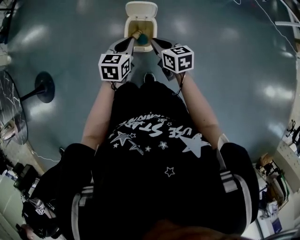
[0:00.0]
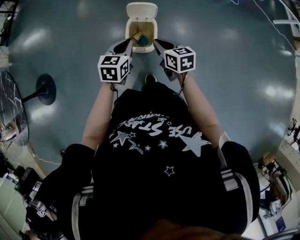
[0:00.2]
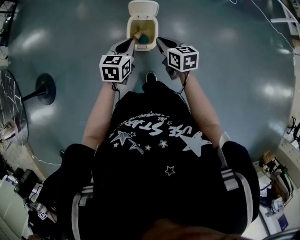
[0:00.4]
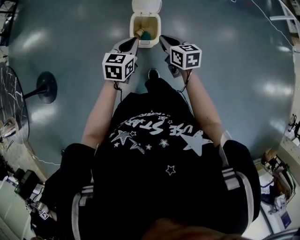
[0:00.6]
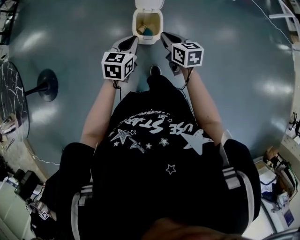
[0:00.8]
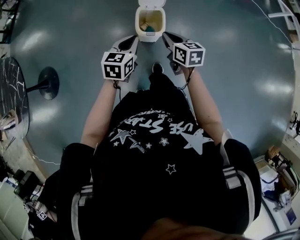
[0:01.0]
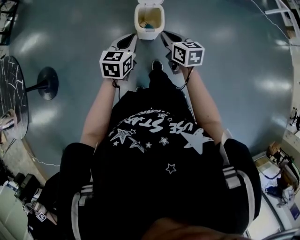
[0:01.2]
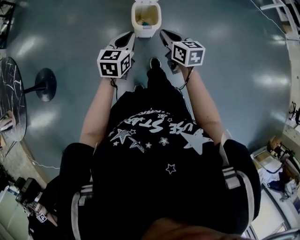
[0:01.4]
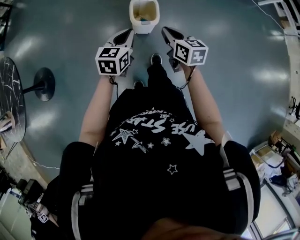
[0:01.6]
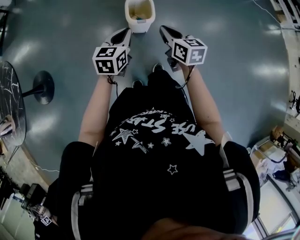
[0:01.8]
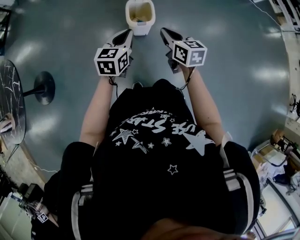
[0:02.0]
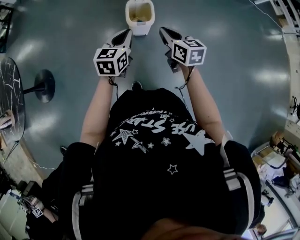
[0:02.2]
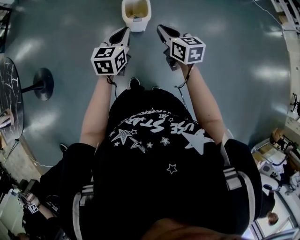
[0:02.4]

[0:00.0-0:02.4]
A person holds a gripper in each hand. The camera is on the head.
0.0 to 1.2 s: The two grippers go about 15 cm backward and to the left.
1.2 to 2.4 s: The right gripper travels backward and upward by about 10 cm, while the left gripper is displaced backward by about 10 cm.

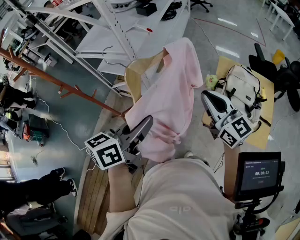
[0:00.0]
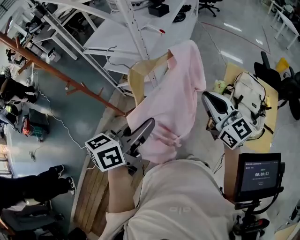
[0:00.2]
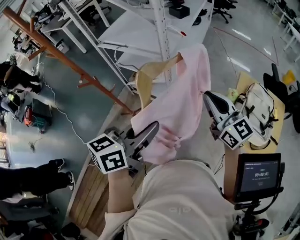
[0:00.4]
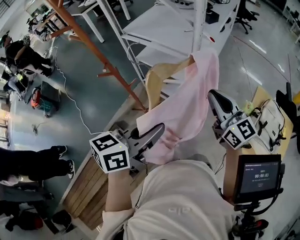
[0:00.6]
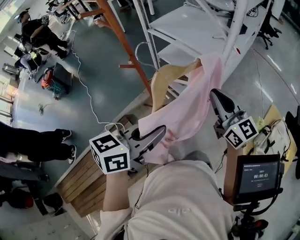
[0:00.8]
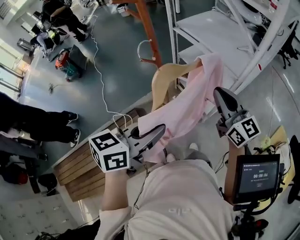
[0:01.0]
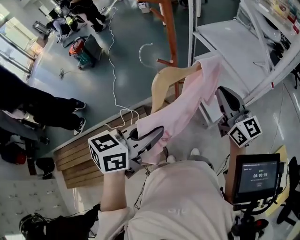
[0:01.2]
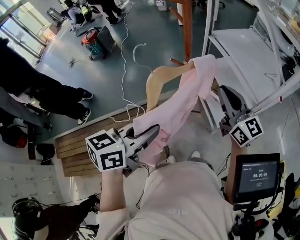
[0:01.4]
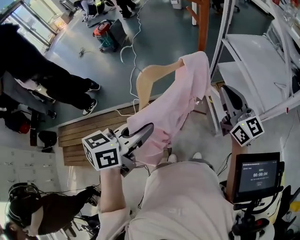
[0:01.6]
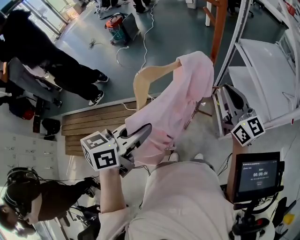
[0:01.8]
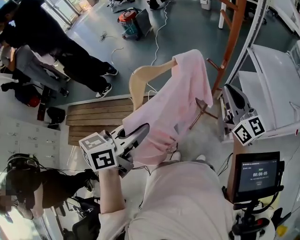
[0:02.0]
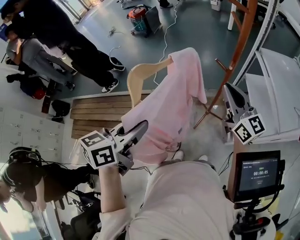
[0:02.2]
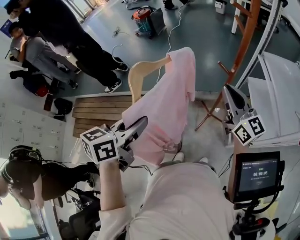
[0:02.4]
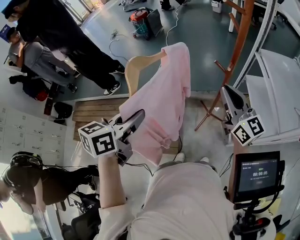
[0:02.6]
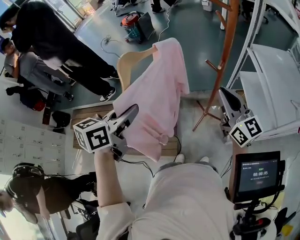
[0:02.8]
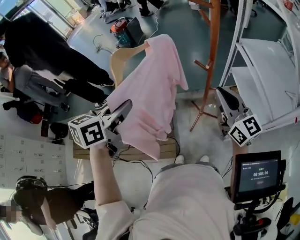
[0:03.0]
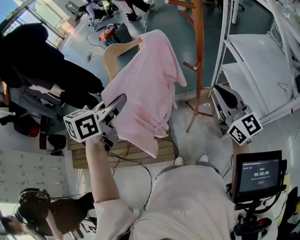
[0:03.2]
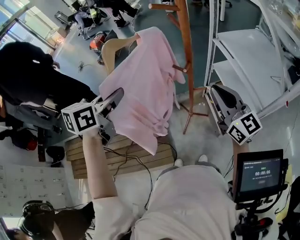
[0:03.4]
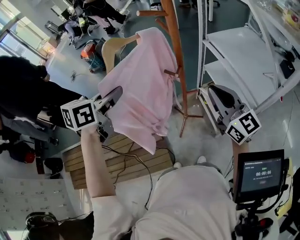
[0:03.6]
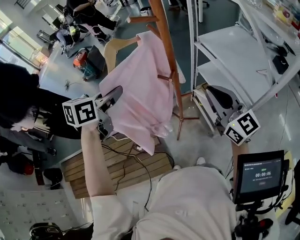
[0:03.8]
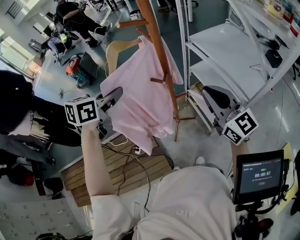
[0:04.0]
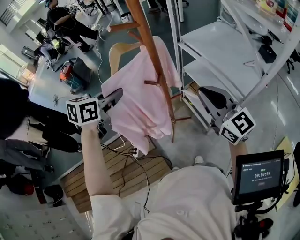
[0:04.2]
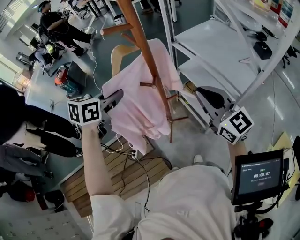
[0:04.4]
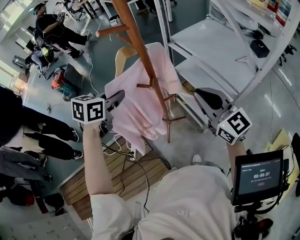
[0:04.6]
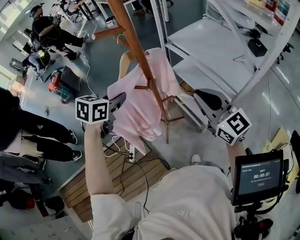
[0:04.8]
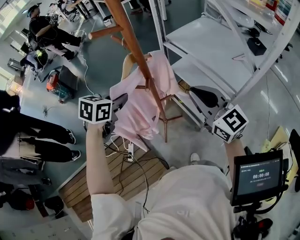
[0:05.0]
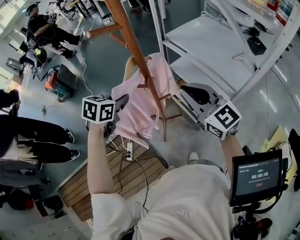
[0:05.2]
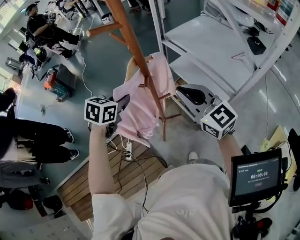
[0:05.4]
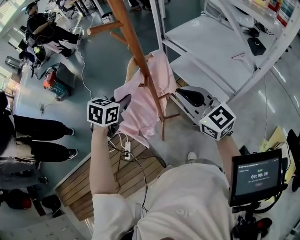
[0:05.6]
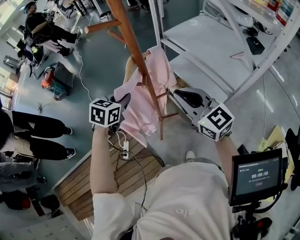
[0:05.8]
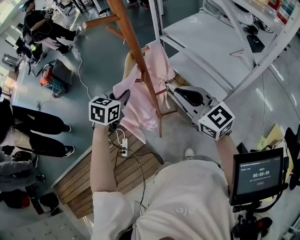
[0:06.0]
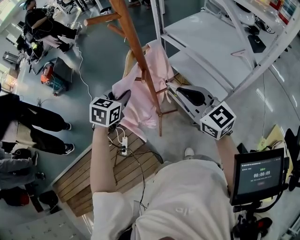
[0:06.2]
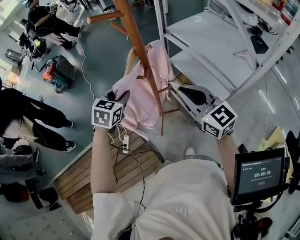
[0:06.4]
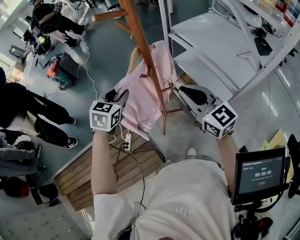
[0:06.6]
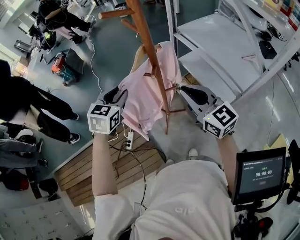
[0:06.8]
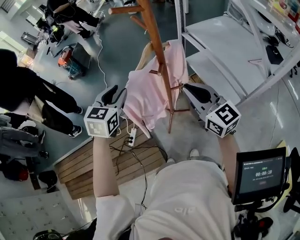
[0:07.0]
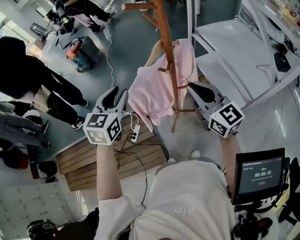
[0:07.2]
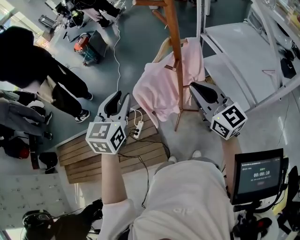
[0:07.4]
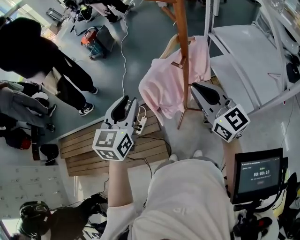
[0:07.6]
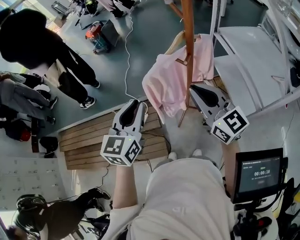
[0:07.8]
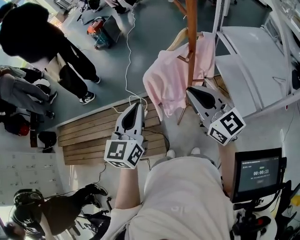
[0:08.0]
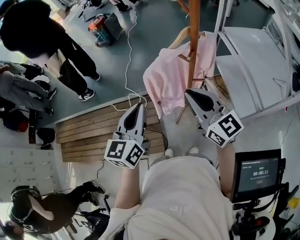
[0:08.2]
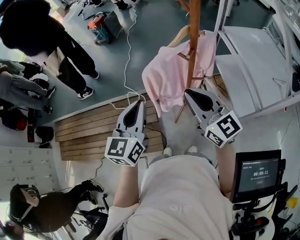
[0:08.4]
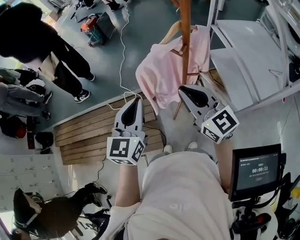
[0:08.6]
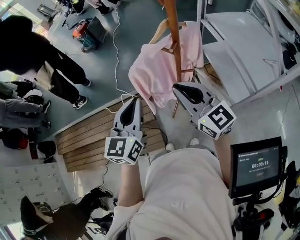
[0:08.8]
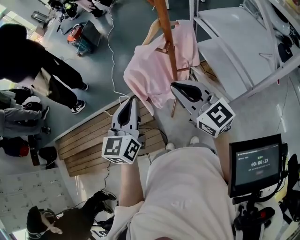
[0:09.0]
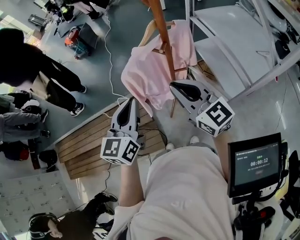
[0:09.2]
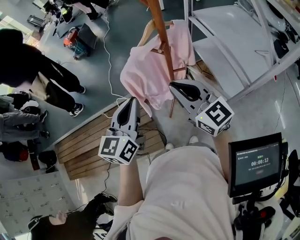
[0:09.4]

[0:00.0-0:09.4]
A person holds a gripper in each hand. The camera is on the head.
0.0 to 1.6 s: The left gripper shifts by about 40 cm, and turns by roughly 50 degrees. The right gripper shifts by about 50 cm, and rotates roughly 50 degrees.
1.6 to 3.2 s: The right gripper travels to the left by approximately 5 cm. Meanwhile the left gripper goes roughly 15 cm forward and to the left.
3.2 to 4.8 s: The left gripper moves forward, downward and to the right, about 25 cm, and rotates some 40 degrees, while the right gripper moves to the right, roughly 5 cm, and turns by about 20 degrees.
4.8 to 6.2 s: The right gripper changes place by approximately 5 cm. The left gripper is displaced downward by roughly 5 cm.
6.2 to 7.8 s: The left gripper shifts by approximately 25 cm, and swivels about 40 degrees; the right gripper moves about 10 cm, and changes its angle by some 20 degrees.
7.8 to 9.4 s: The left gripper shifts by about 5 cm.

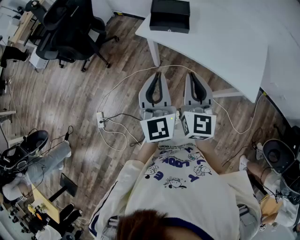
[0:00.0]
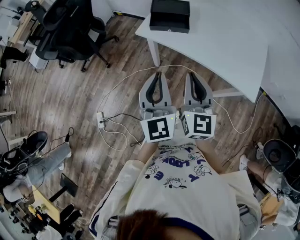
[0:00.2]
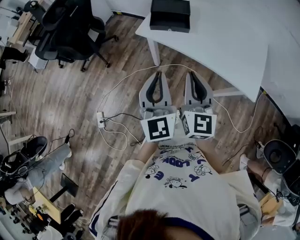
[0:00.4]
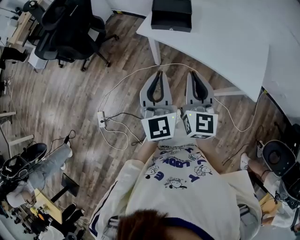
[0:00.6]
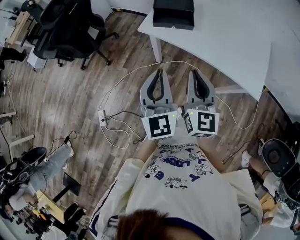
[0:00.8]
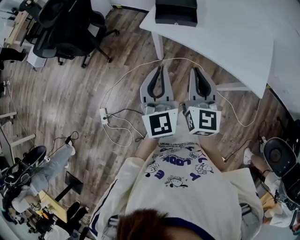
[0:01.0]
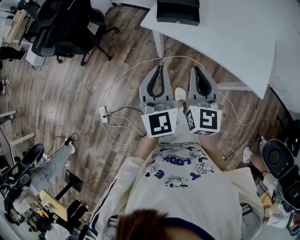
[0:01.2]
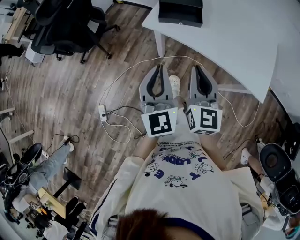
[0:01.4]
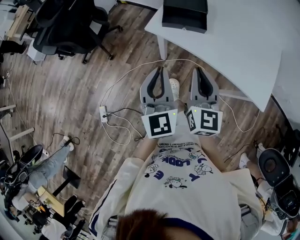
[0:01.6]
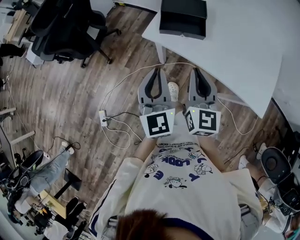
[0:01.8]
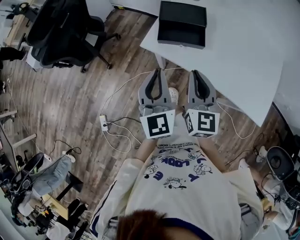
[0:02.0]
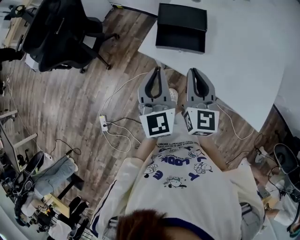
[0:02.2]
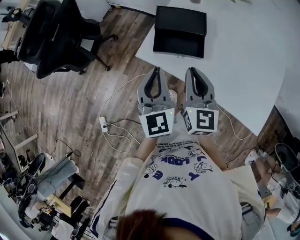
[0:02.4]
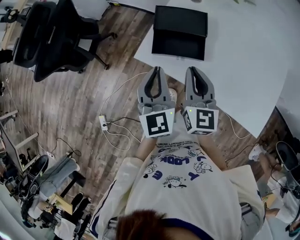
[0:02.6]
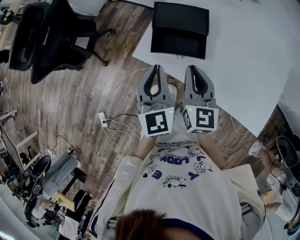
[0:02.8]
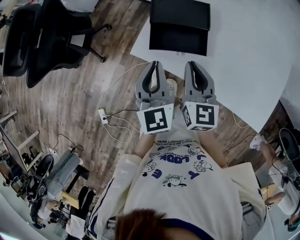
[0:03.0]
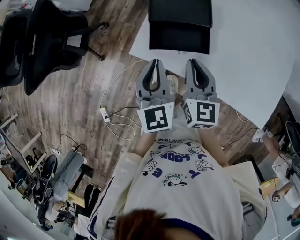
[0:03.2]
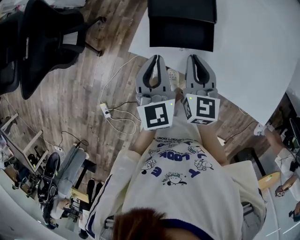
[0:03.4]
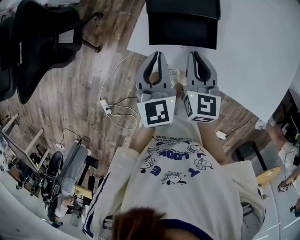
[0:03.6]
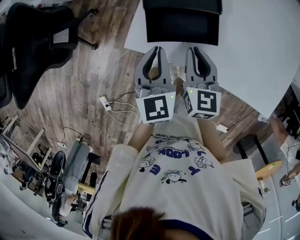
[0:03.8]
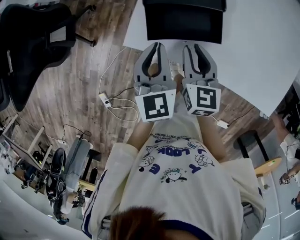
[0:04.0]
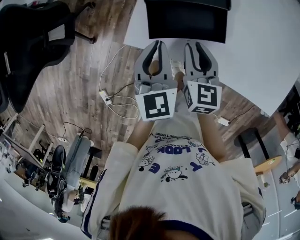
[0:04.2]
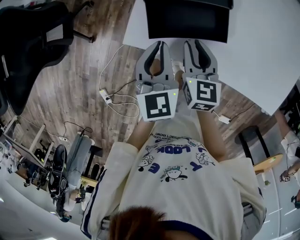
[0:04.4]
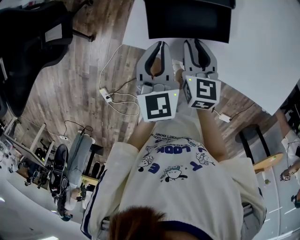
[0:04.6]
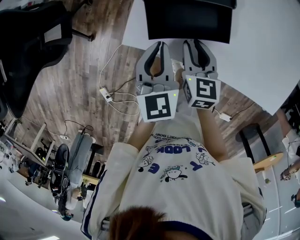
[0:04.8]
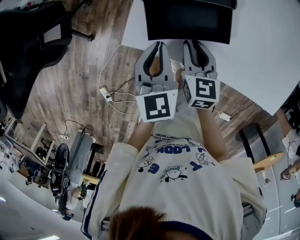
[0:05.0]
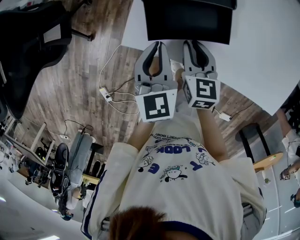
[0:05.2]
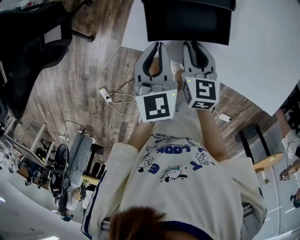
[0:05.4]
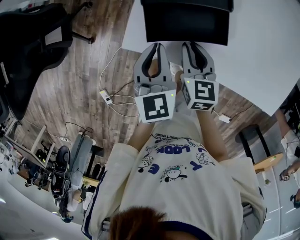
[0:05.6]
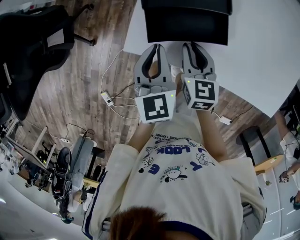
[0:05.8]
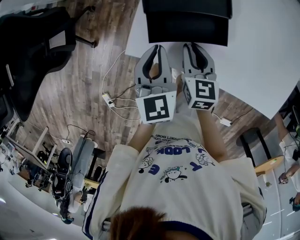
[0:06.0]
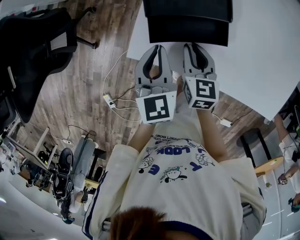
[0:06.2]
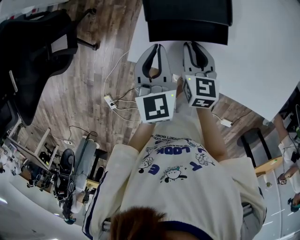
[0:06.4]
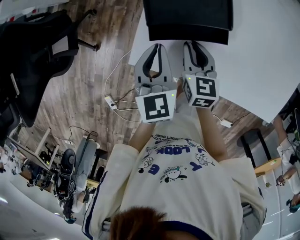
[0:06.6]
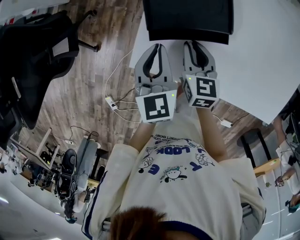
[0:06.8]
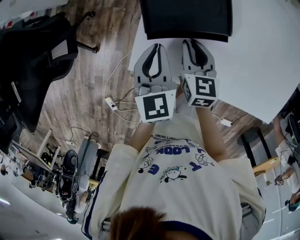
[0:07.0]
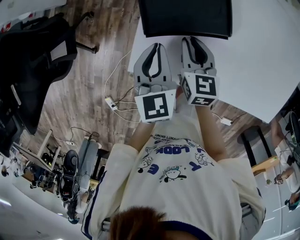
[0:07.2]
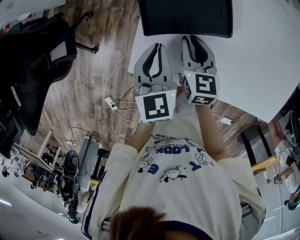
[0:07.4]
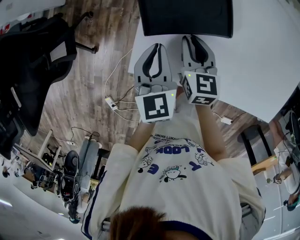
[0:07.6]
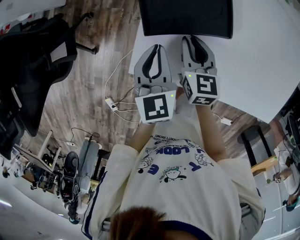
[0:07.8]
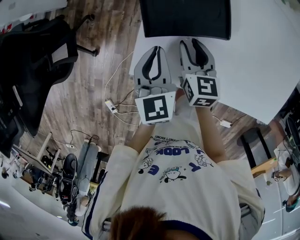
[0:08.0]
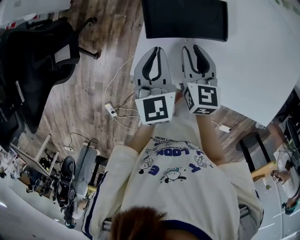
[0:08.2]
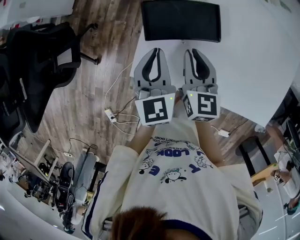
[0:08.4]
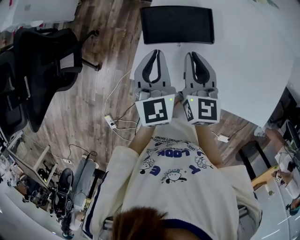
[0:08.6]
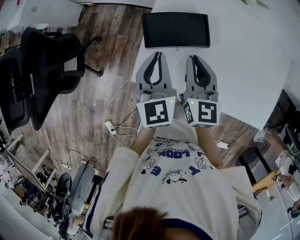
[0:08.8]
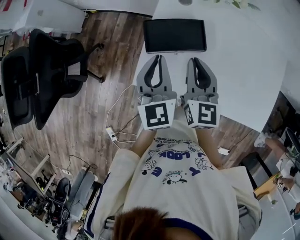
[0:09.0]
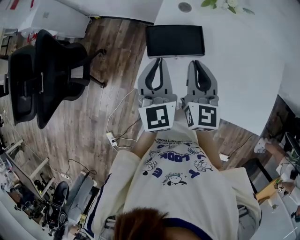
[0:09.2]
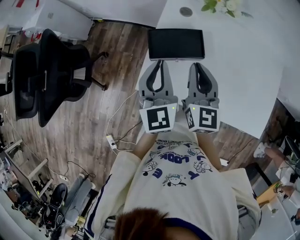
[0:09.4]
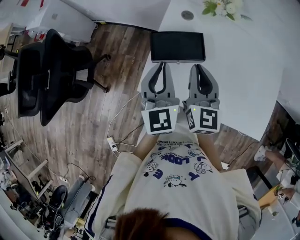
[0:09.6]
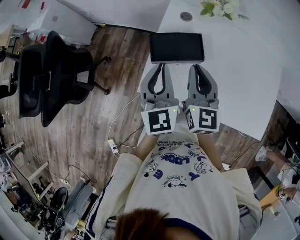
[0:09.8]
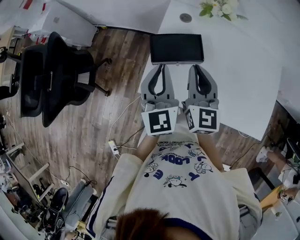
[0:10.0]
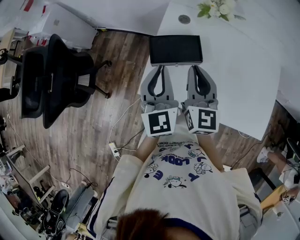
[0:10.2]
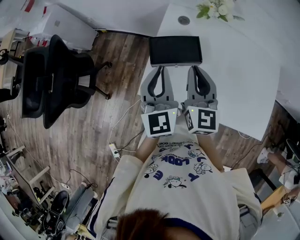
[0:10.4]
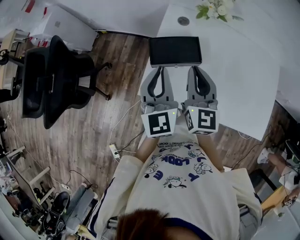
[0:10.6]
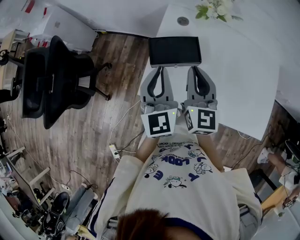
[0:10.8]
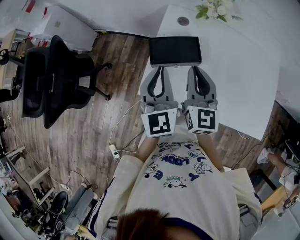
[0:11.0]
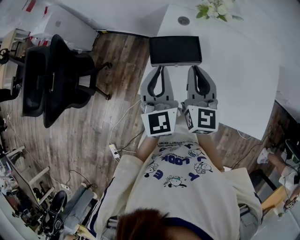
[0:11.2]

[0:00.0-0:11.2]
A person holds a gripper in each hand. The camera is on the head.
0.0 to 1.6 s: The left gripper heads forward and to the left, covering some 10 cm. The right gripper travels forward by some 10 cm.
1.6 to 3.2 s: The left gripper shifts approximately 25 cm forward; the right gripper goes roughly 30 cm forward and downward.
3.2 to 4.8 s: Both grippers move downward, some 10 cm.
4.8 to 6.4 s: The grippers both shift forward by about 5 cm.
6.4 to 8.0 s: The right gripper shifts about 5 cm forward.
8.0 to 9.6 s: The two grippers go roughly 20 cm upward. The right gripper rotates some 30 degrees, and closes; the left gripper swivels about 20 degrees.
9.6 to 11.2 s: There are only small adjustments of the grippers.

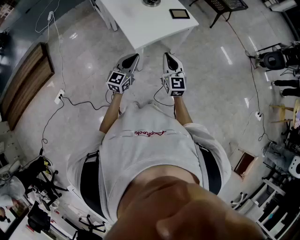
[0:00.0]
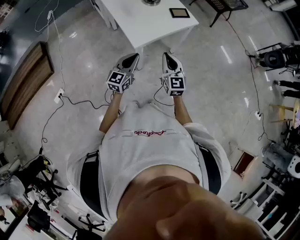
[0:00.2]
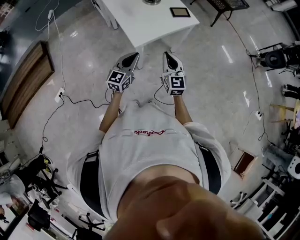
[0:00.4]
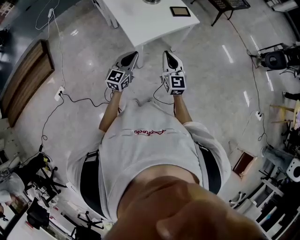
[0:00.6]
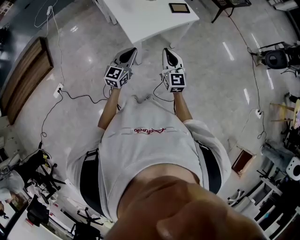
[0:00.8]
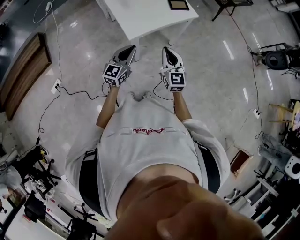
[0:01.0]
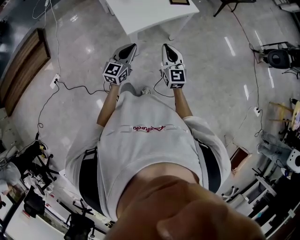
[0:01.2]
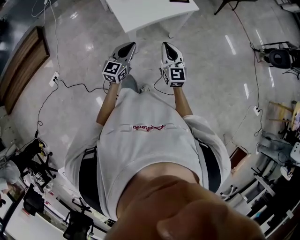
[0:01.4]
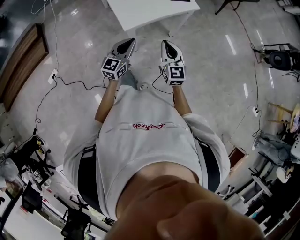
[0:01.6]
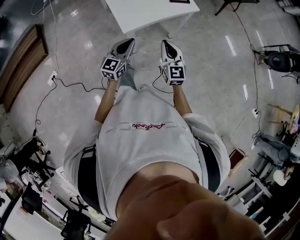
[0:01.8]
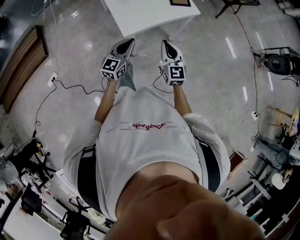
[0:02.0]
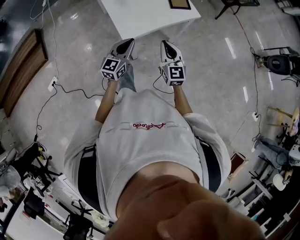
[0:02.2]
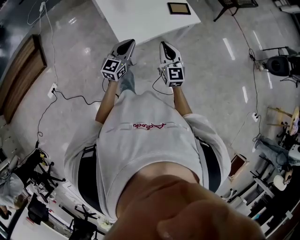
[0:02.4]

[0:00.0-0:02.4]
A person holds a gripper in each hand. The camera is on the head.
0.0 to 1.2 s: The grippers make only small movements.
1.2 to 2.4 s: The two grippers go approximately 10 cm forward.
